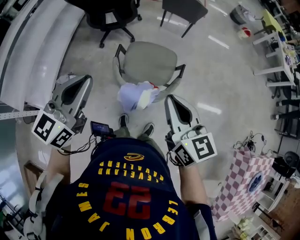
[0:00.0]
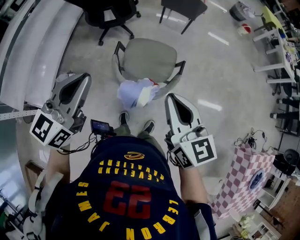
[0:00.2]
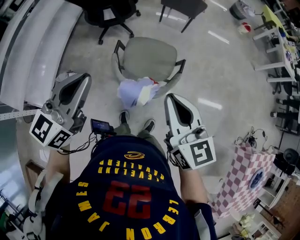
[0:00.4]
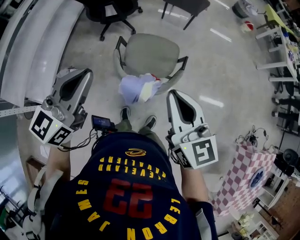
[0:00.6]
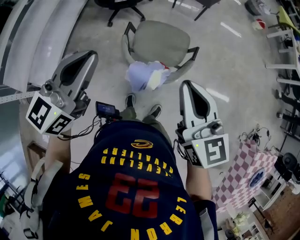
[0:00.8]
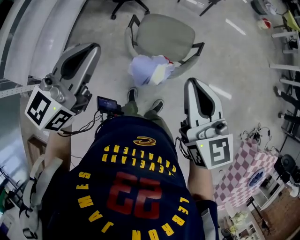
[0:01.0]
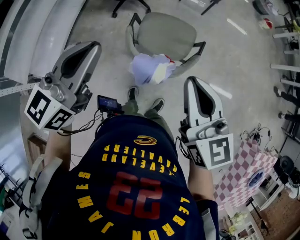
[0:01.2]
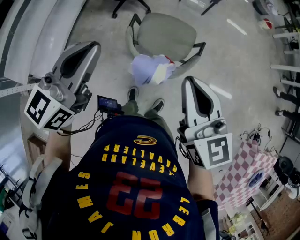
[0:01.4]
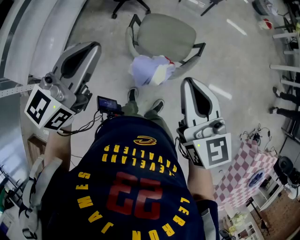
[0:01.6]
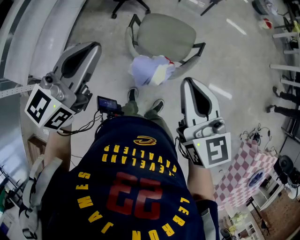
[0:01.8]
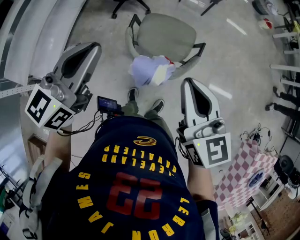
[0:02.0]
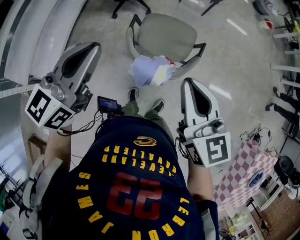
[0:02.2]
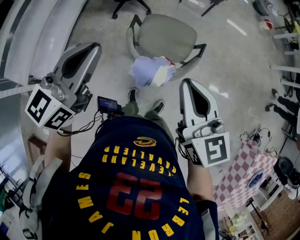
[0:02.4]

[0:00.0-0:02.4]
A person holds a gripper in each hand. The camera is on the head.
0:00.0 to 0:02.4: The grippers stay close to where they were, moving slightly.

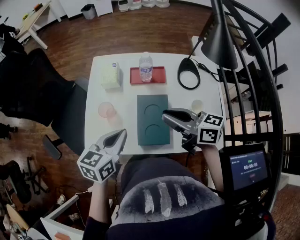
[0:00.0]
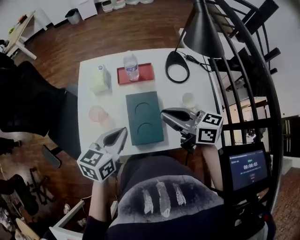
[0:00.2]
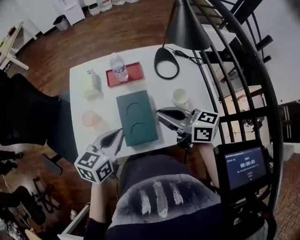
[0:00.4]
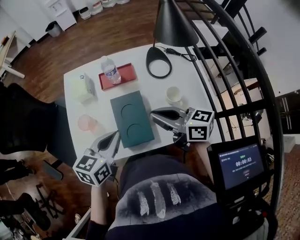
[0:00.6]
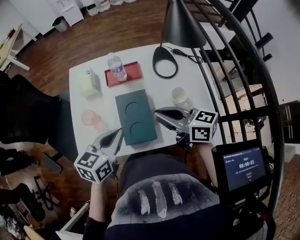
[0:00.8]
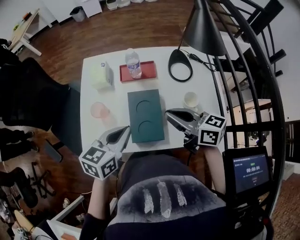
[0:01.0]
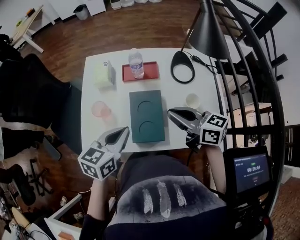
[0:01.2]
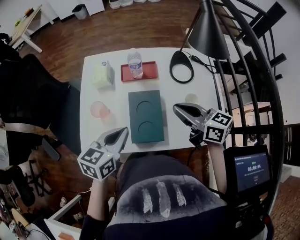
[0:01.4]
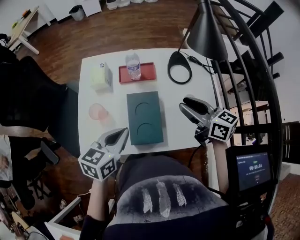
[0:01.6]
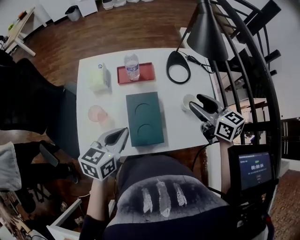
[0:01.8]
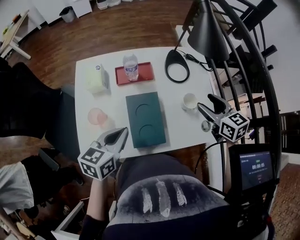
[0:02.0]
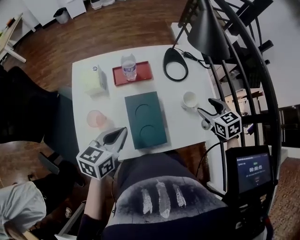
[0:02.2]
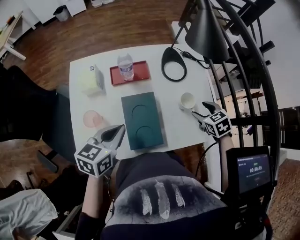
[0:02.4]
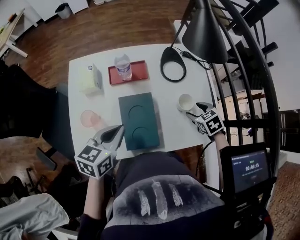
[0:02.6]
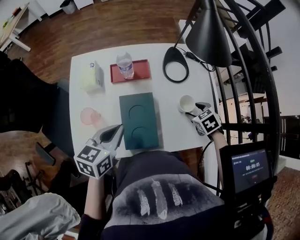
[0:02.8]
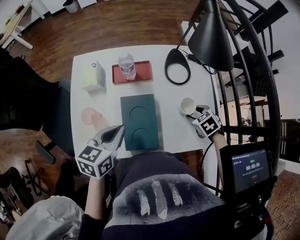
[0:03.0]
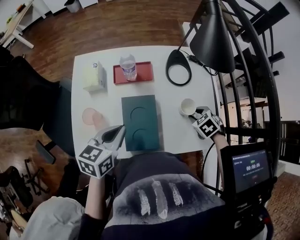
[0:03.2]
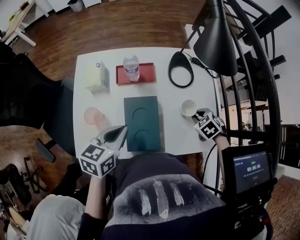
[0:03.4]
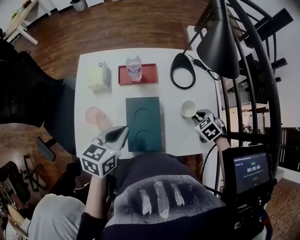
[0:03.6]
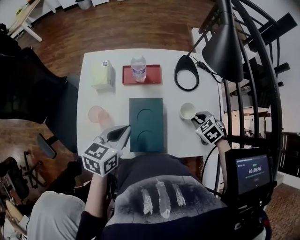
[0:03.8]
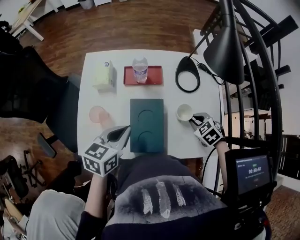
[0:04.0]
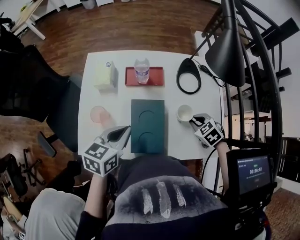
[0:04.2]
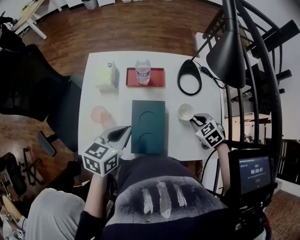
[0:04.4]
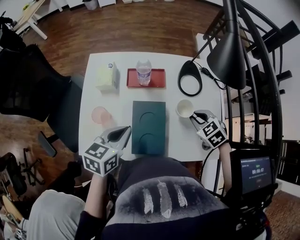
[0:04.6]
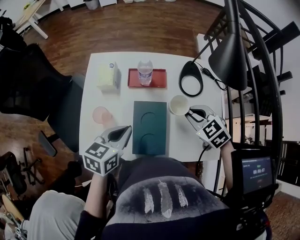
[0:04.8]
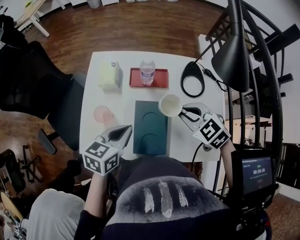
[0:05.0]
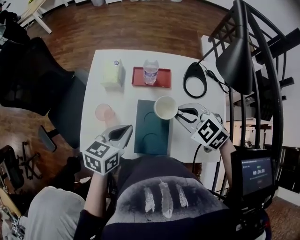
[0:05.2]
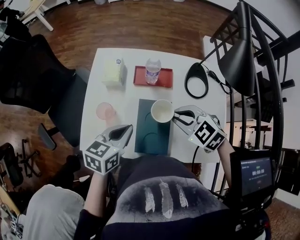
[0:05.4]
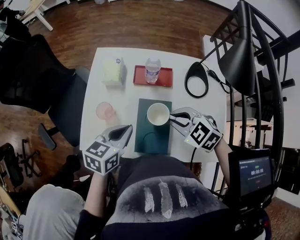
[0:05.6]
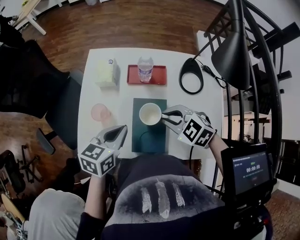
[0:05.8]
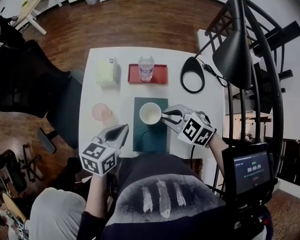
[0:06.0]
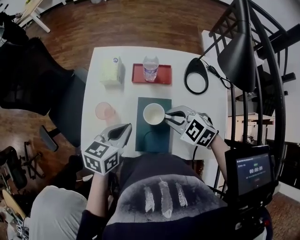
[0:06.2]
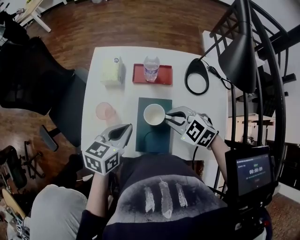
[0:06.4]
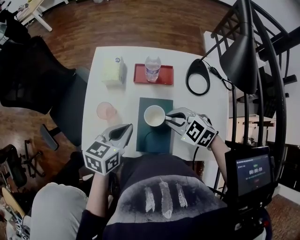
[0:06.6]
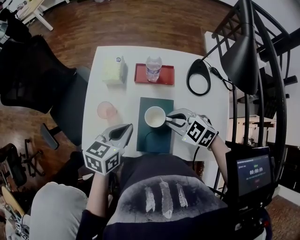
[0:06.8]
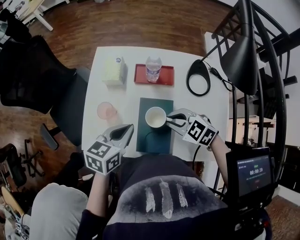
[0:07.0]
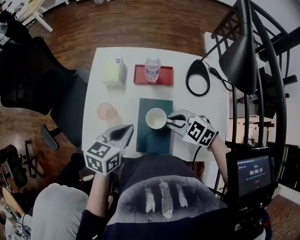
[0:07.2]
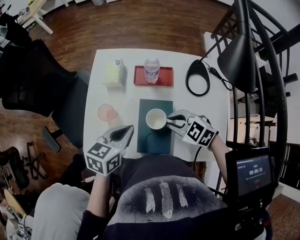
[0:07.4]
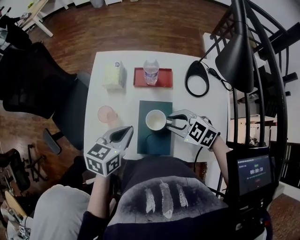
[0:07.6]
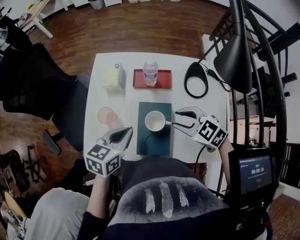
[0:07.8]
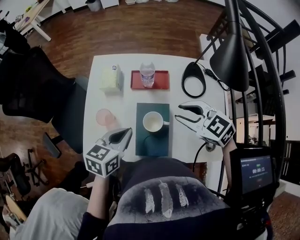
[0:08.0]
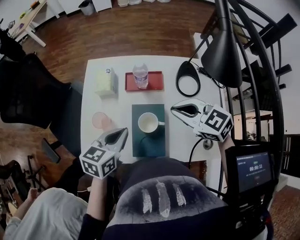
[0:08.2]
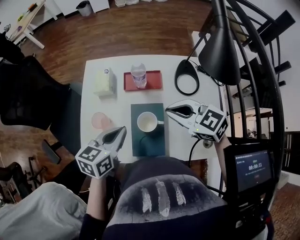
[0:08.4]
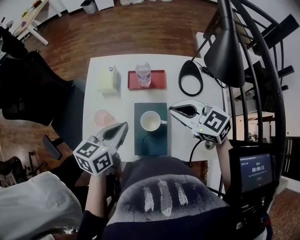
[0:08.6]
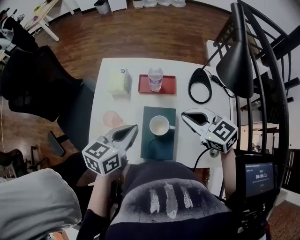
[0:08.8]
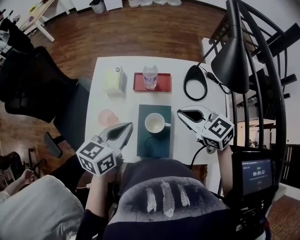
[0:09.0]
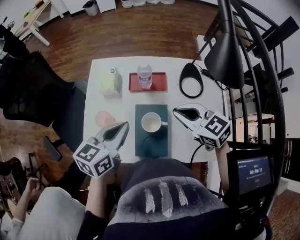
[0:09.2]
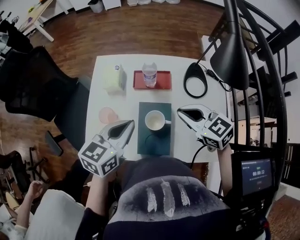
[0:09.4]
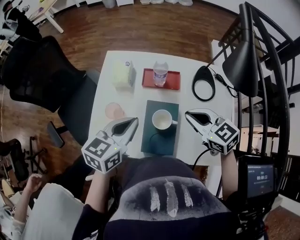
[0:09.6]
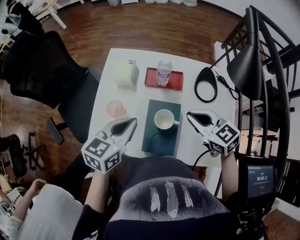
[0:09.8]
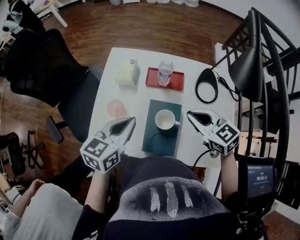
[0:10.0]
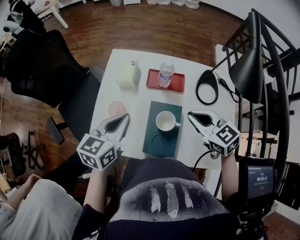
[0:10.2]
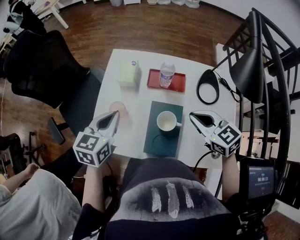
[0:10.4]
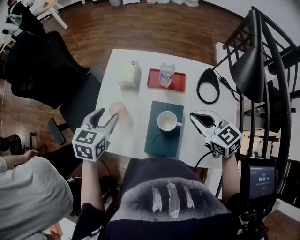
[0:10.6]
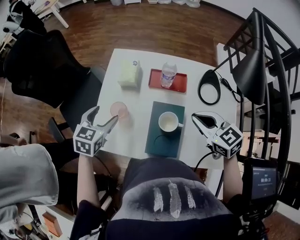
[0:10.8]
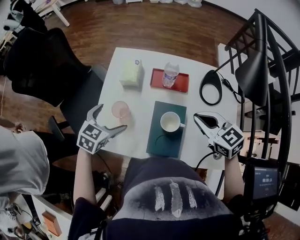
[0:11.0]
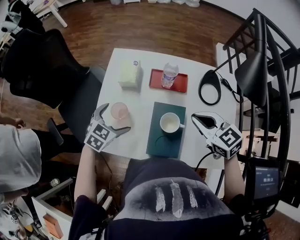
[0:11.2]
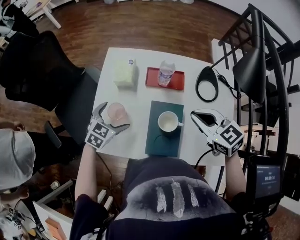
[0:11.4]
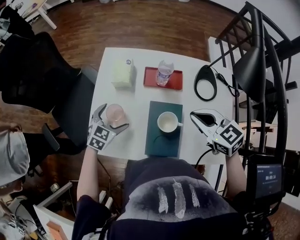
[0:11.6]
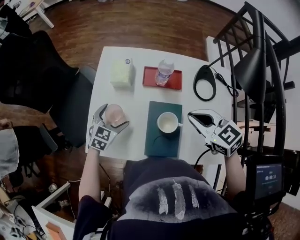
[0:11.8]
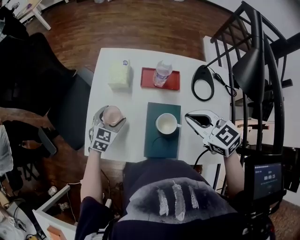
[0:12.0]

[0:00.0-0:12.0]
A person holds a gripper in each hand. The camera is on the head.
0:00.0 to 0:01.6: The right gripper shifts some 10 cm to the right.
0:01.6 to 0:03.0: The right gripper heads downward and to the right, covering about 25 cm, points its fingers about 50 degrees further downward, and opens its fingers.
0:03.0 to 0:04.4: The right gripper shifts by approximately 5 cm, and closes.
0:04.4 to 0:06.0: The right gripper goes about 20 cm to the left and upward, and turns by about 30 degrees.
0:06.0 to 0:07.6: The grippers move only a little.
0:07.6 to 0:09.0: The right gripper heads upward, covering approximately 10 cm, swivels some 30 degrees, and closes.
0:09.0 to 0:10.4: The left gripper shifts some 10 cm to the left, and swivels approximately 20 degrees.
0:10.4 to 0:12.0: The left gripper goes roughly 20 cm downward, changes its angle by roughly 20 degrees, and opens its fingers.

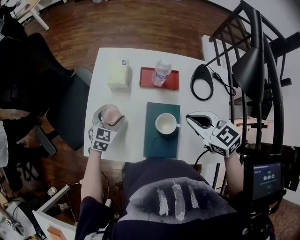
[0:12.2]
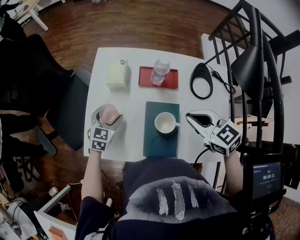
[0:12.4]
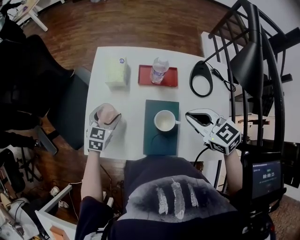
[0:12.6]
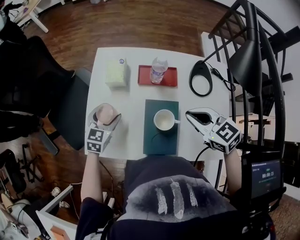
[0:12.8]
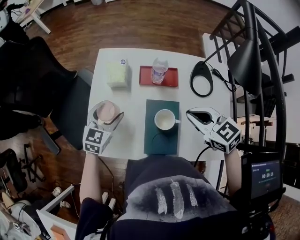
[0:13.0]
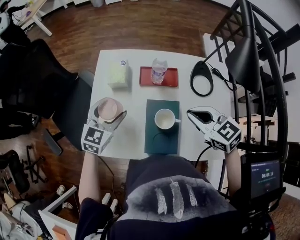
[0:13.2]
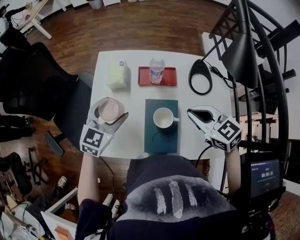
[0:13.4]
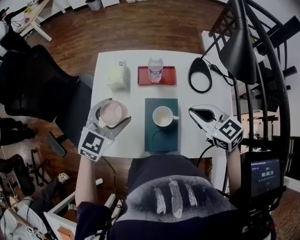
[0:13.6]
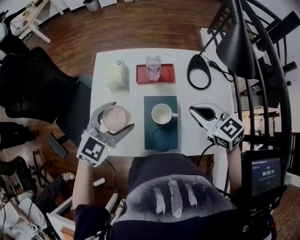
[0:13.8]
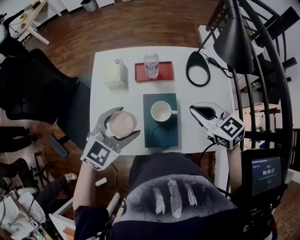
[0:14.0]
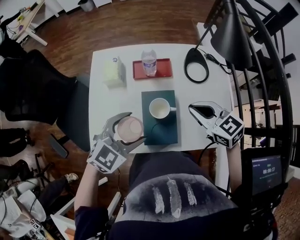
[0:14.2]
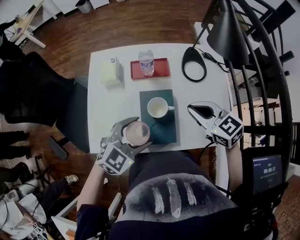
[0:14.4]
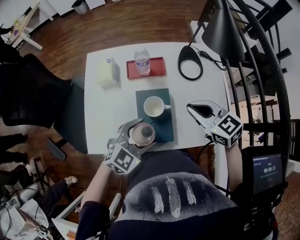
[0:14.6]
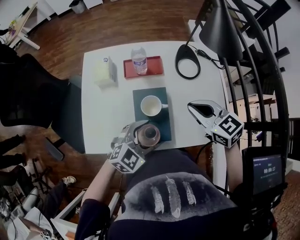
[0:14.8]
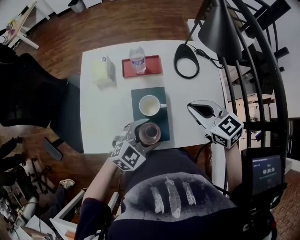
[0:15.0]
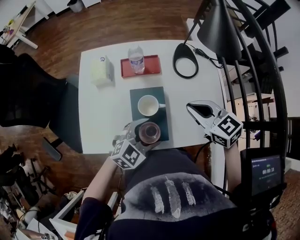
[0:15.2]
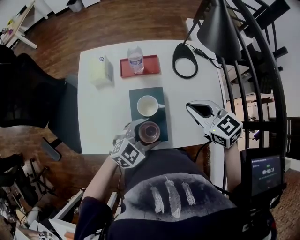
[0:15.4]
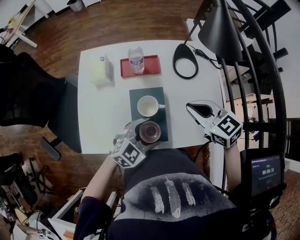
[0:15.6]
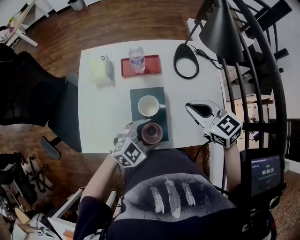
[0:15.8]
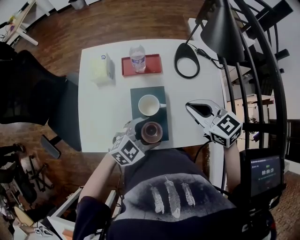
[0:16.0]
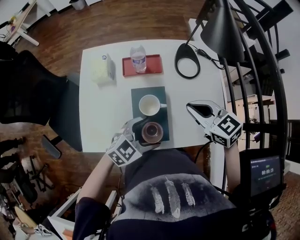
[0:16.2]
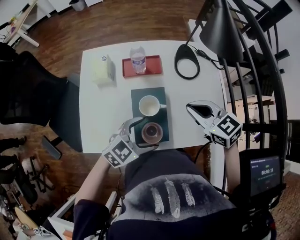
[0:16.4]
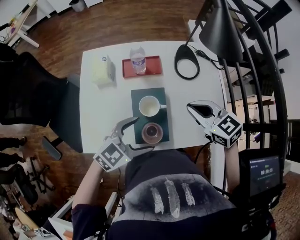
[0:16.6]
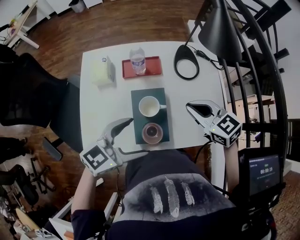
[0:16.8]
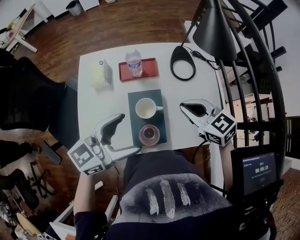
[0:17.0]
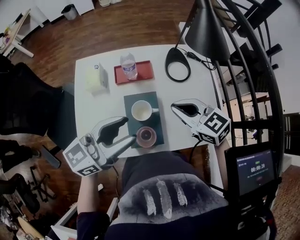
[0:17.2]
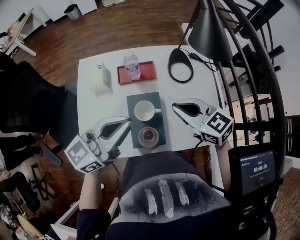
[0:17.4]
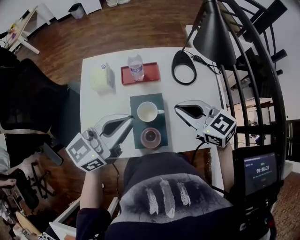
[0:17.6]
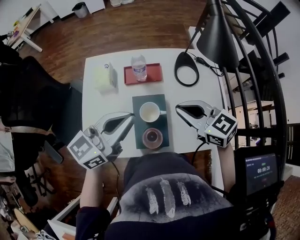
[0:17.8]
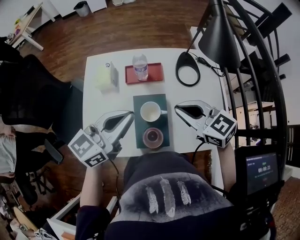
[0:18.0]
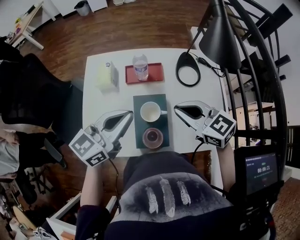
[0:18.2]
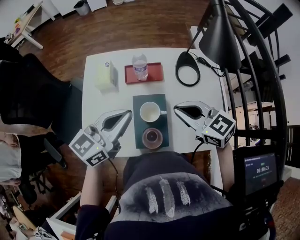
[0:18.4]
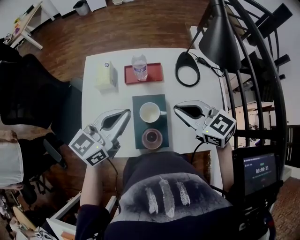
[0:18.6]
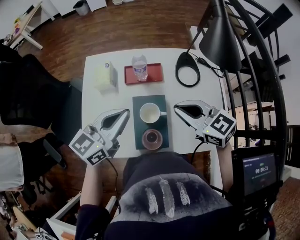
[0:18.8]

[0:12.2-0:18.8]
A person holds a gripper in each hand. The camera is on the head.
0:12.2 to 0:13.8: The left gripper travels upward and backward by some 20 cm, and swivels some 30 degrees.
0:13.8 to 0:15.4: The left gripper shifts roughly 20 cm to the right, downward and backward.
0:15.4 to 0:17.2: The left gripper is displaced upward by approximately 20 cm, and tips its fingers upward by some 30 degrees.
0:17.2 to 0:18.8: The left gripper changes place by about 5 cm, and closes.

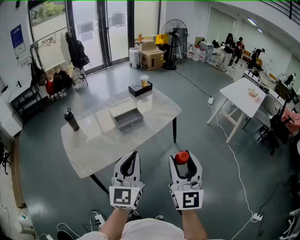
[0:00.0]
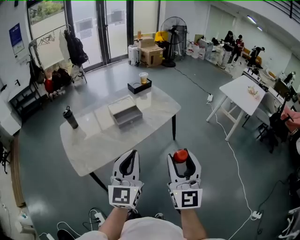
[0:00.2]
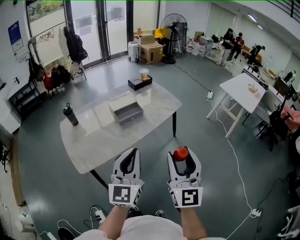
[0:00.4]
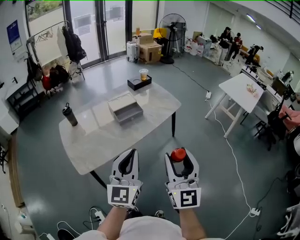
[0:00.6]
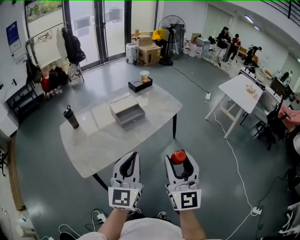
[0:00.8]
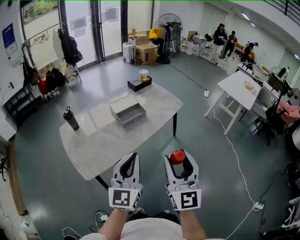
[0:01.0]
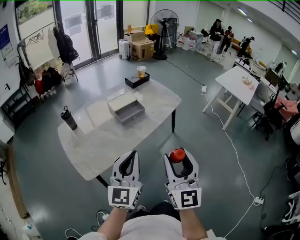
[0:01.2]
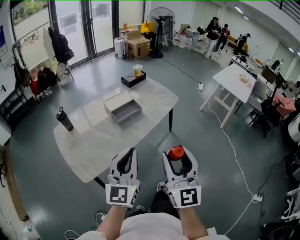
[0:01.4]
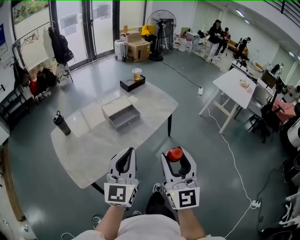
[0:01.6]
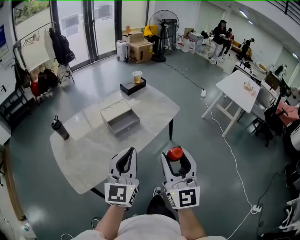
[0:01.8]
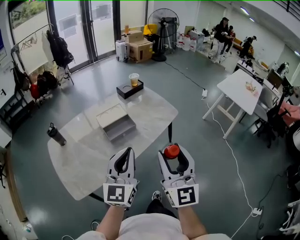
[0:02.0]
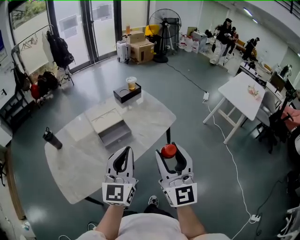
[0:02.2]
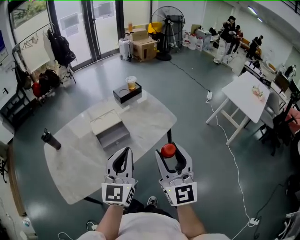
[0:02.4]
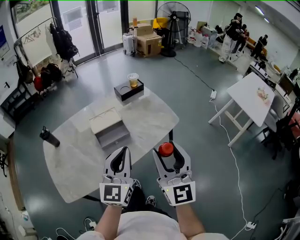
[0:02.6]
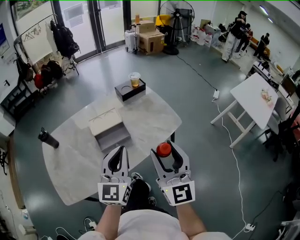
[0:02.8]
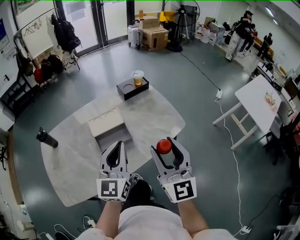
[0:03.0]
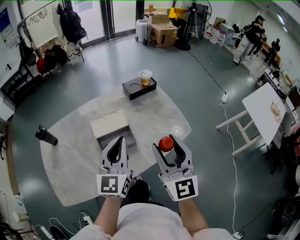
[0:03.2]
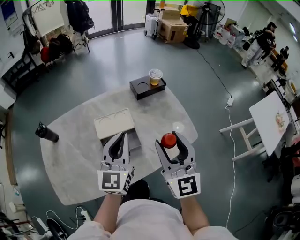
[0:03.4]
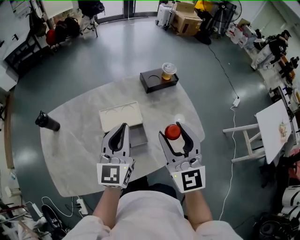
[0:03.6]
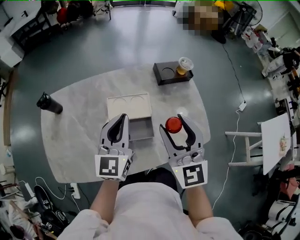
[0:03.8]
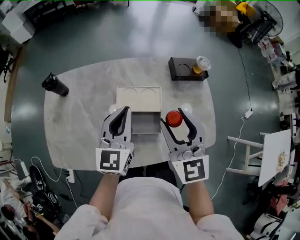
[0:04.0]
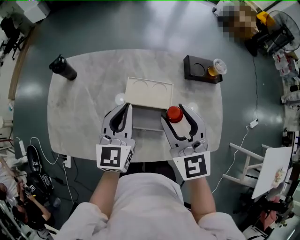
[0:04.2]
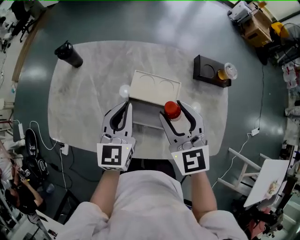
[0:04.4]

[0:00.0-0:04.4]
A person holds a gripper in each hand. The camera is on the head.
0:00.0 to 0:01.4: The grippers both shift to the left by some 10 cm.
0:01.4 to 0:03.0: The two grippers go roughly 40 cm forward.
0:03.0 to 0:04.4: The left gripper shifts by approximately 30 cm, and changes its angle by some 40 degrees, while the right gripper ends up about 35 cm from where it was, and rotates some 50 degrees.
